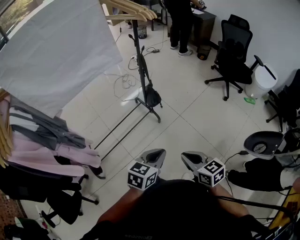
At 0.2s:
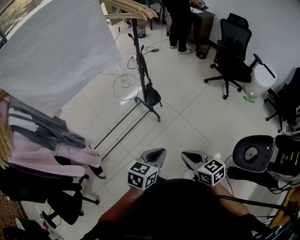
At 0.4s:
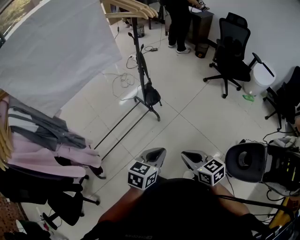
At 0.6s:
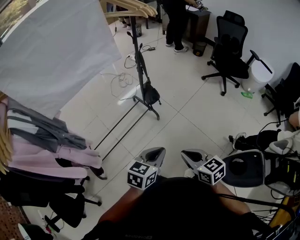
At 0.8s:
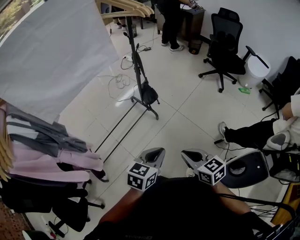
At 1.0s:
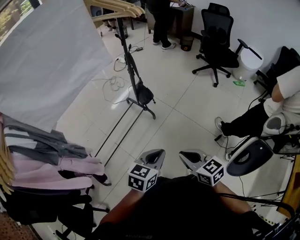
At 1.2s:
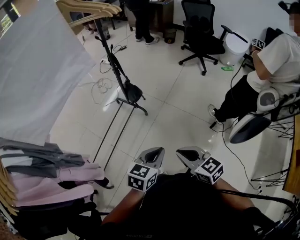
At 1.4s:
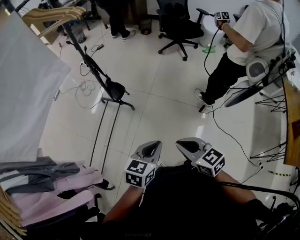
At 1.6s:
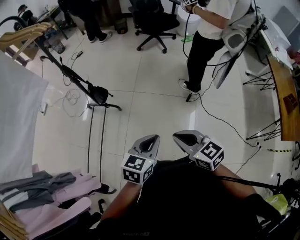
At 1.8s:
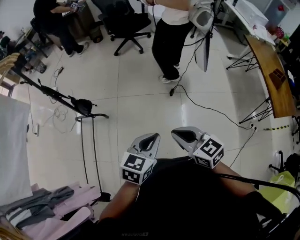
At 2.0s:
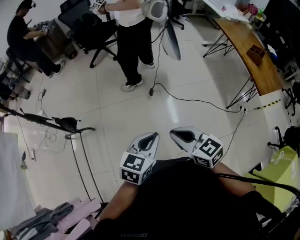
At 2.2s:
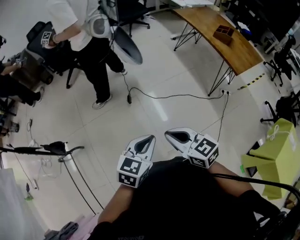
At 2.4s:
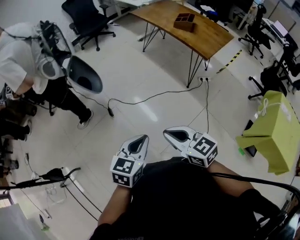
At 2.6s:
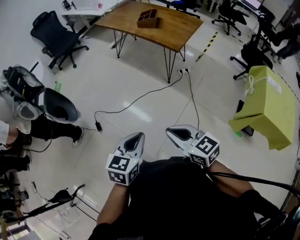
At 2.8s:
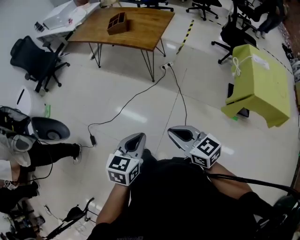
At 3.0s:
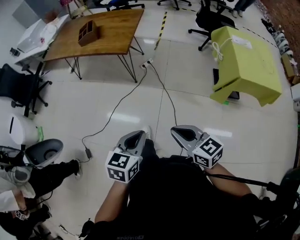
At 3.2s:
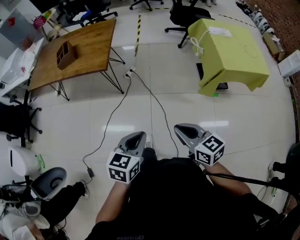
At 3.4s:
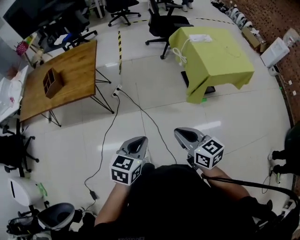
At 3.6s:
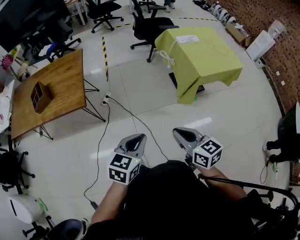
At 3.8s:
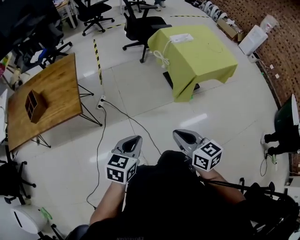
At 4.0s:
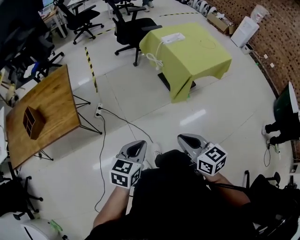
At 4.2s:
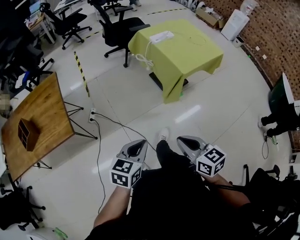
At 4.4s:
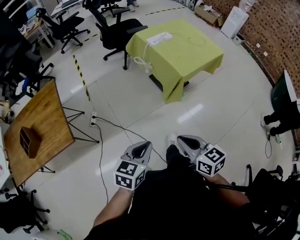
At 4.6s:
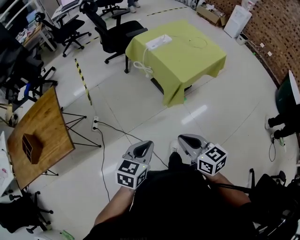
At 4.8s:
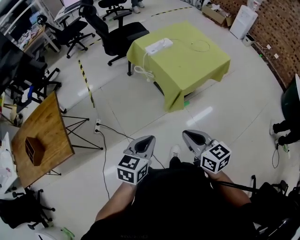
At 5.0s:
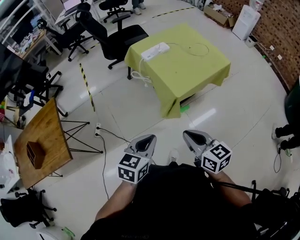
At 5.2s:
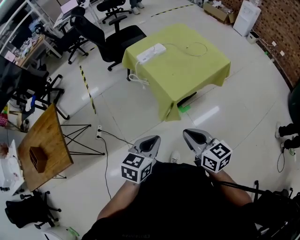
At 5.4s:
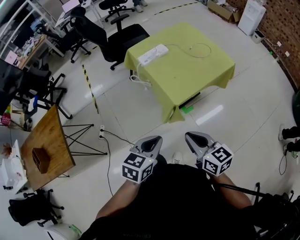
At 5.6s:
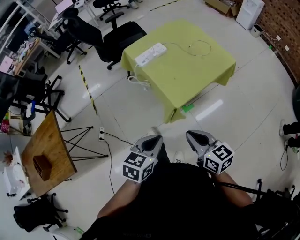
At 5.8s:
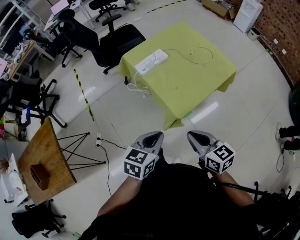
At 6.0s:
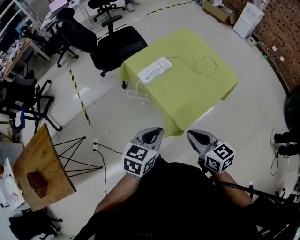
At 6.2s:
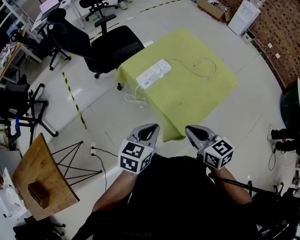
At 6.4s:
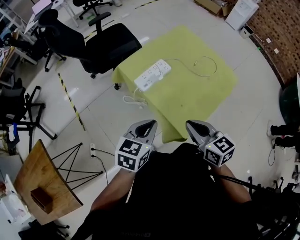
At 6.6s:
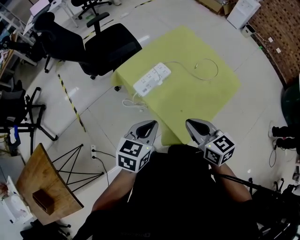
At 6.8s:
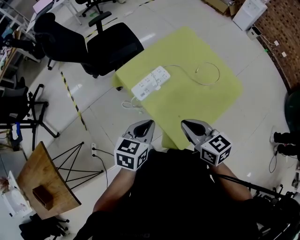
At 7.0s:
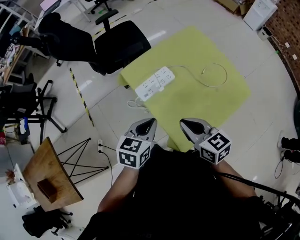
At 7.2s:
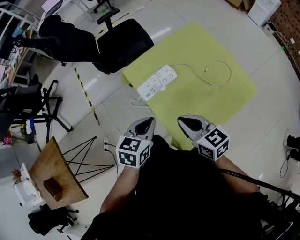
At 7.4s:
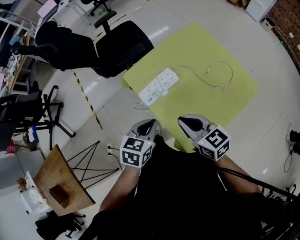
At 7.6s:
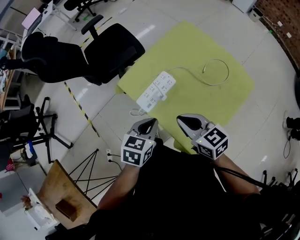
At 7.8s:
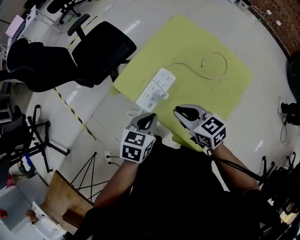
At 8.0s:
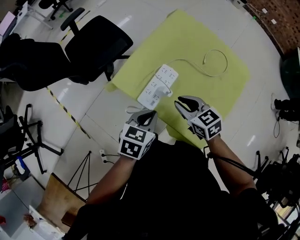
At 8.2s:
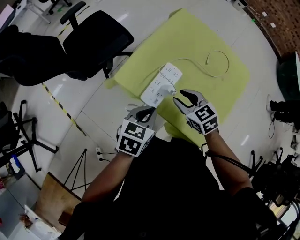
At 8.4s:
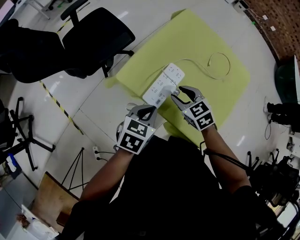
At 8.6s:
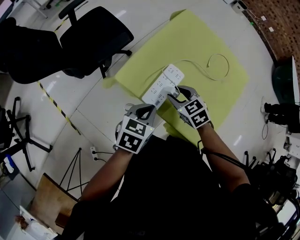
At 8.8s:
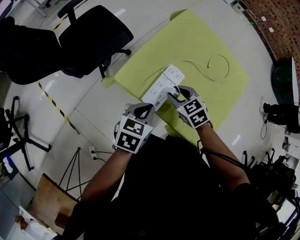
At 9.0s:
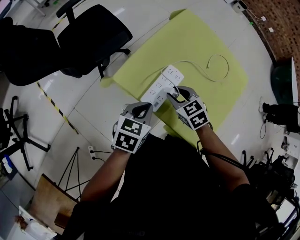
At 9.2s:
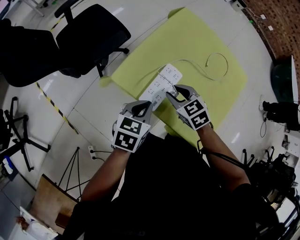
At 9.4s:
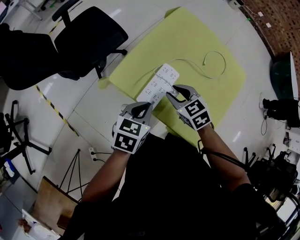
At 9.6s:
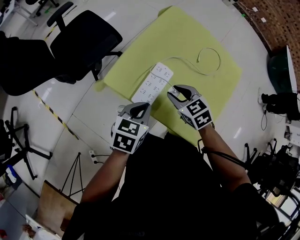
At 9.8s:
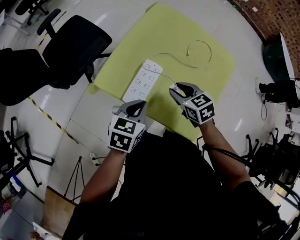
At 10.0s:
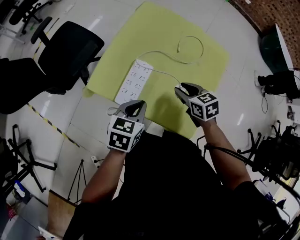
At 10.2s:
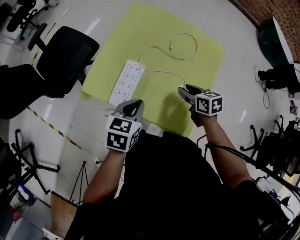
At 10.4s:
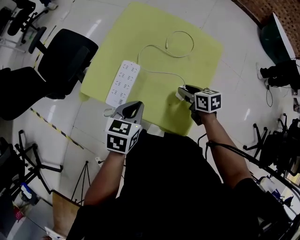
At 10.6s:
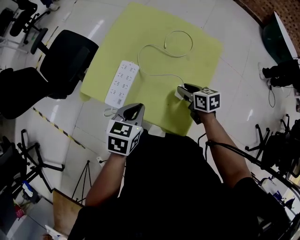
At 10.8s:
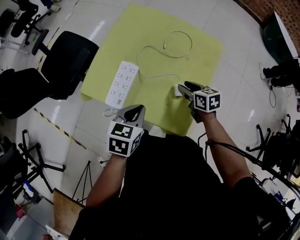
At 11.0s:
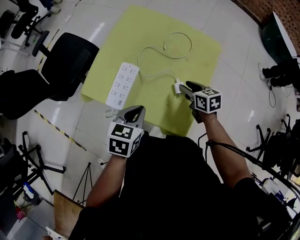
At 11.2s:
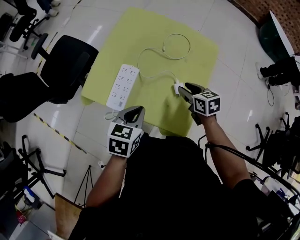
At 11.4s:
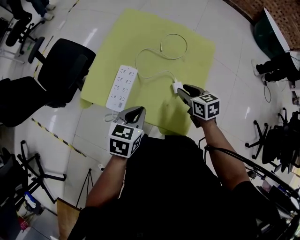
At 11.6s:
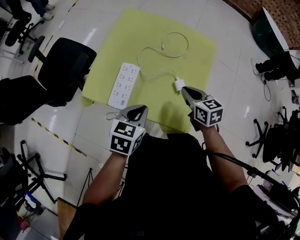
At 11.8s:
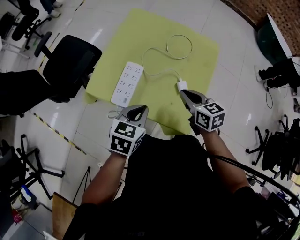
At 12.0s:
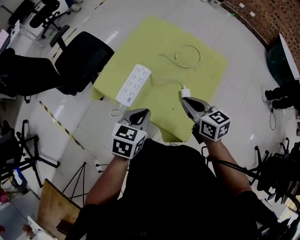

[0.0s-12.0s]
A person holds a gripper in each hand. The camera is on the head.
0.0s to 1.6s: The right gripper changes place by approximately 10 cm, and turns by roughly 30 degrees. Meanwhile the left gripper ends up about 10 cm from where it was, and swivels approximately 30 degrees.
1.6s to 3.0s: The pair of grippers is taken some 80 cm. The left gripper rotates some 80 degrees; the right gripper swivels approximately 90 degrees.
3.0s to 4.4s: The right gripper shifts by roughly 25 cm, and turns by some 50 degrees. Meanwhile the left gripper shifts by approximately 30 cm, and changes its angle by about 50 degrees.
4.4s to 6.0s: Both grippers are carried forward, some 40 cm.
6.0s to 7.6s: The two grippers go roughly 25 cm forward.
7.6s to 9.0s: The right gripper heads downward, forward and to the left, covering approximately 15 cm, turns by some 30 degrees, and opens its fingers. The left gripper shifts about 10 cm to the left and forward.
9.0s to 10.4s: The left gripper moves to the right, about 10 cm; the right gripper is displaced to the right by some 25 cm, and rotates around the line of its fingers by roughly 40 degrees, clockwise from behind.
10.4s to 12.0s: The left gripper ends up some 5 cm from where it was; the right gripper goes roughly 15 cm upward, rotates approximately 20 degrees, and closes.

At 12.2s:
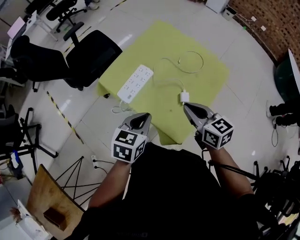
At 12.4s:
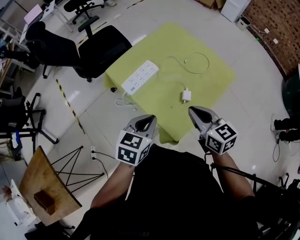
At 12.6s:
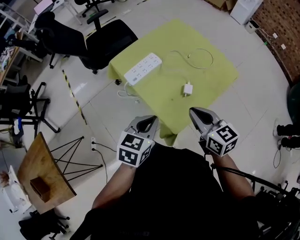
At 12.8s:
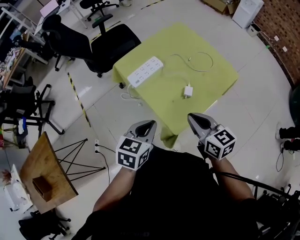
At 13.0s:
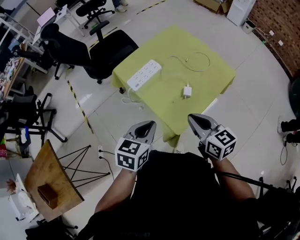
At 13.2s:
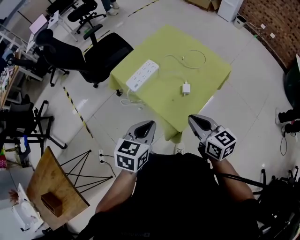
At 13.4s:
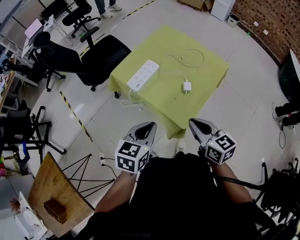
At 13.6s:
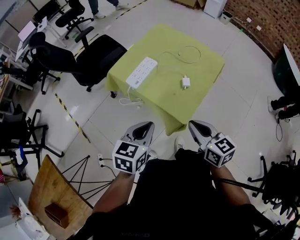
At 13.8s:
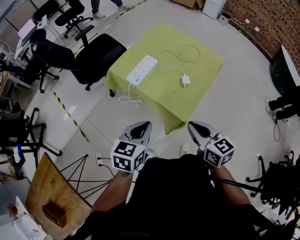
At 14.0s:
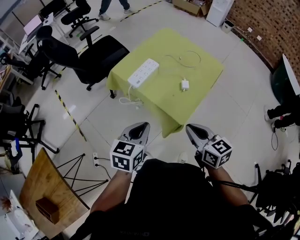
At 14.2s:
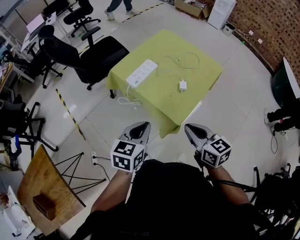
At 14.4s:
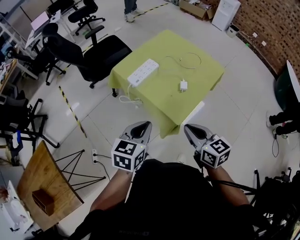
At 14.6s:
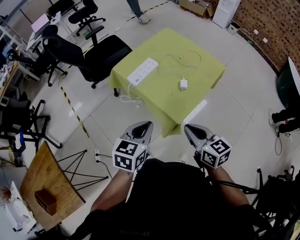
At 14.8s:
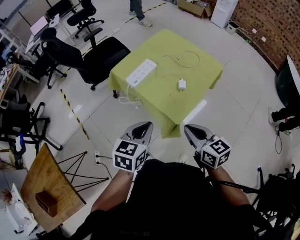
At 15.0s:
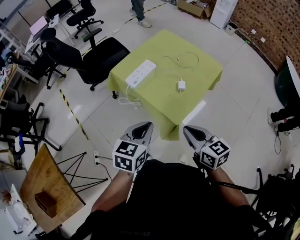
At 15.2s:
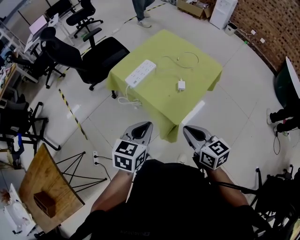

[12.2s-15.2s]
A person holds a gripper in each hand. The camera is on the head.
12.2s to 13.8s: Both grippers travel together backward, roughly 15 cm.
13.8s to 15.2s: The left gripper changes place by some 5 cm.

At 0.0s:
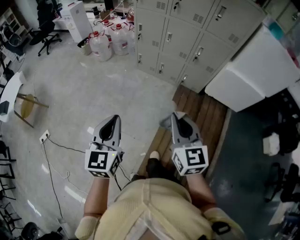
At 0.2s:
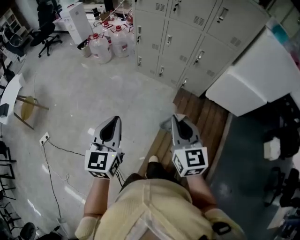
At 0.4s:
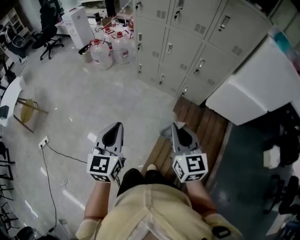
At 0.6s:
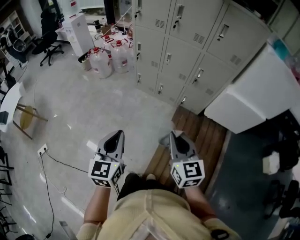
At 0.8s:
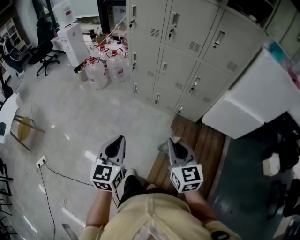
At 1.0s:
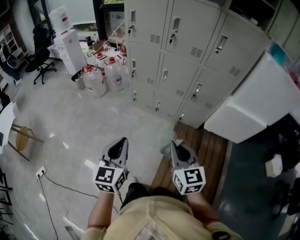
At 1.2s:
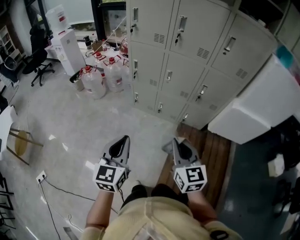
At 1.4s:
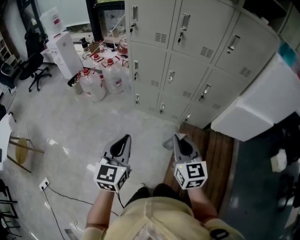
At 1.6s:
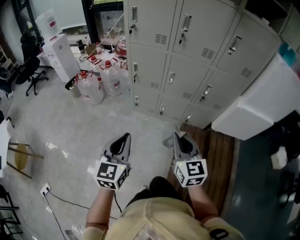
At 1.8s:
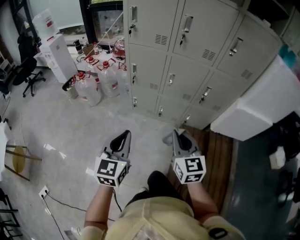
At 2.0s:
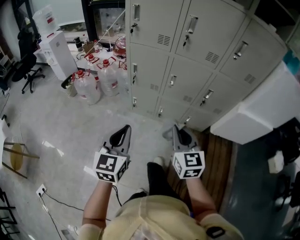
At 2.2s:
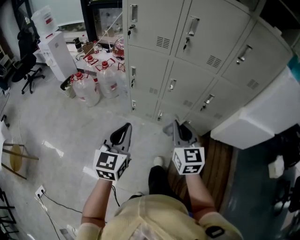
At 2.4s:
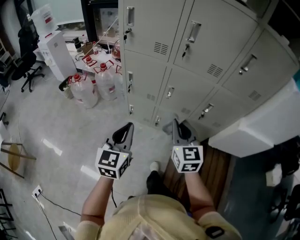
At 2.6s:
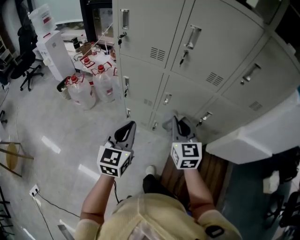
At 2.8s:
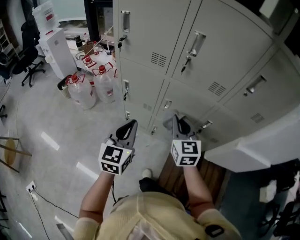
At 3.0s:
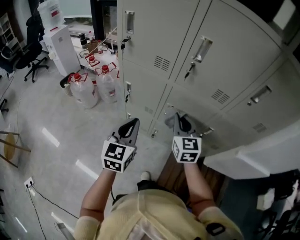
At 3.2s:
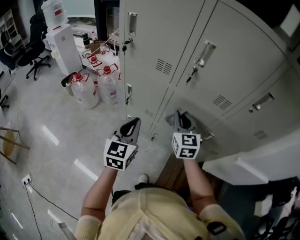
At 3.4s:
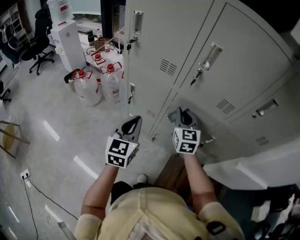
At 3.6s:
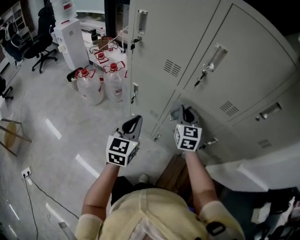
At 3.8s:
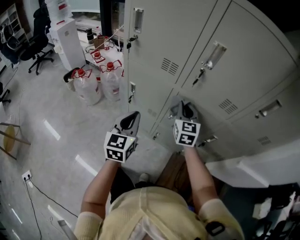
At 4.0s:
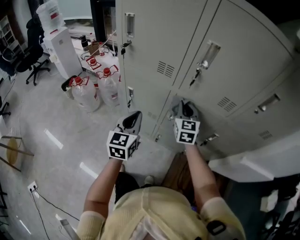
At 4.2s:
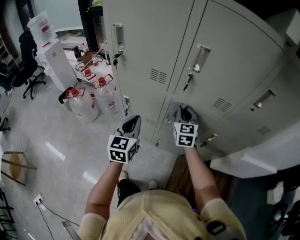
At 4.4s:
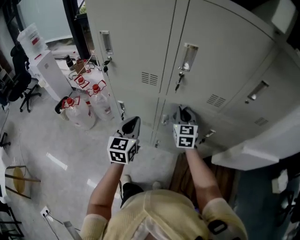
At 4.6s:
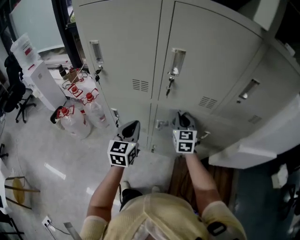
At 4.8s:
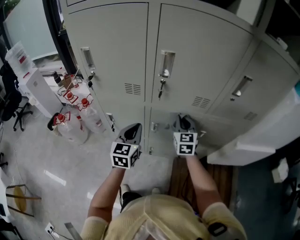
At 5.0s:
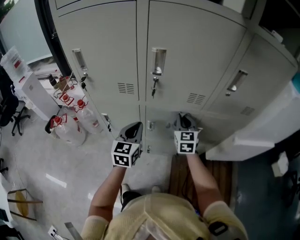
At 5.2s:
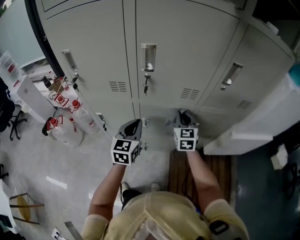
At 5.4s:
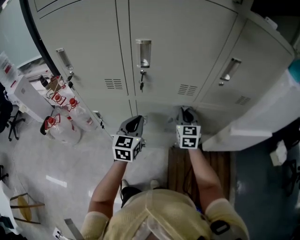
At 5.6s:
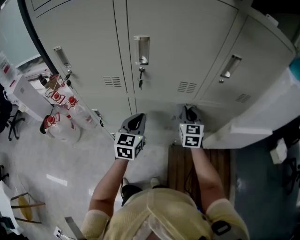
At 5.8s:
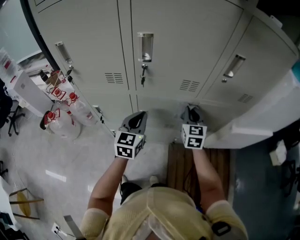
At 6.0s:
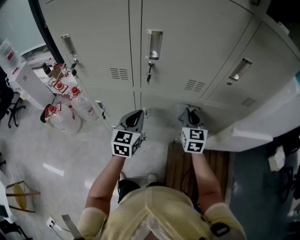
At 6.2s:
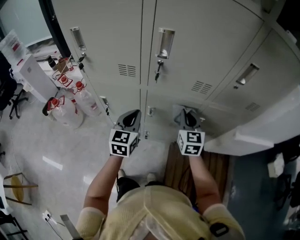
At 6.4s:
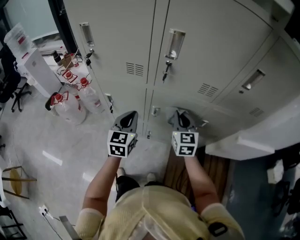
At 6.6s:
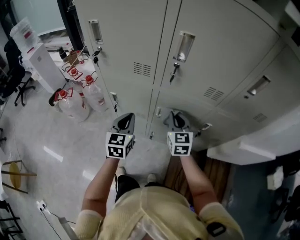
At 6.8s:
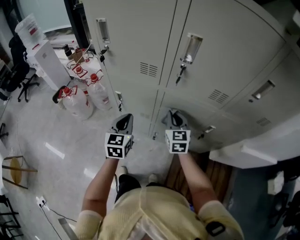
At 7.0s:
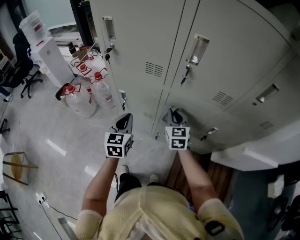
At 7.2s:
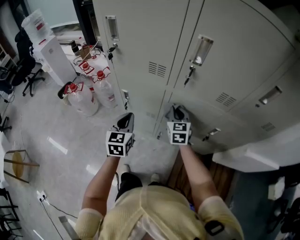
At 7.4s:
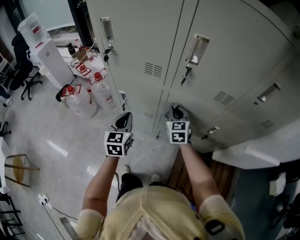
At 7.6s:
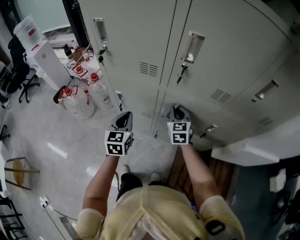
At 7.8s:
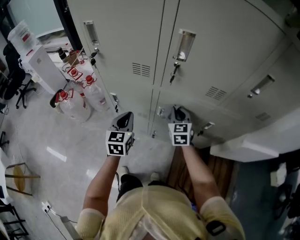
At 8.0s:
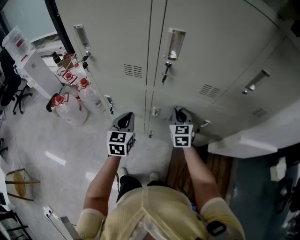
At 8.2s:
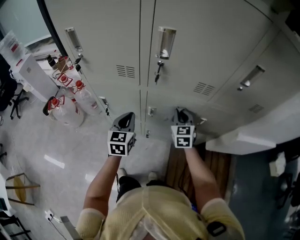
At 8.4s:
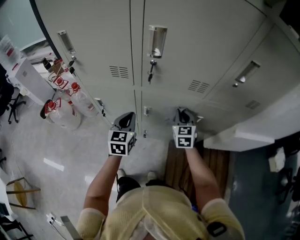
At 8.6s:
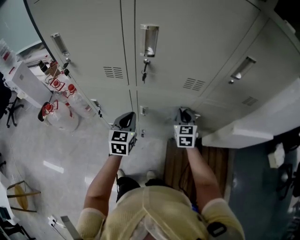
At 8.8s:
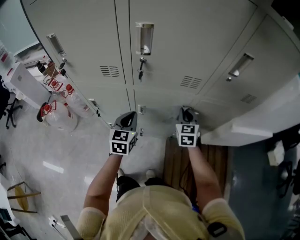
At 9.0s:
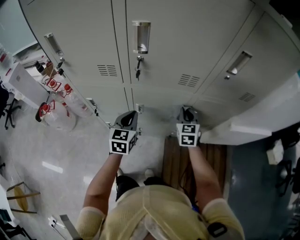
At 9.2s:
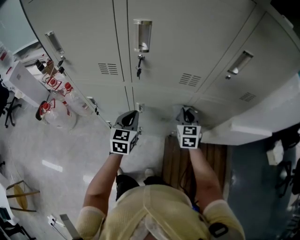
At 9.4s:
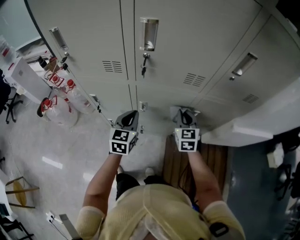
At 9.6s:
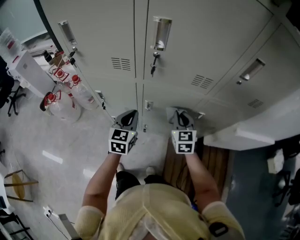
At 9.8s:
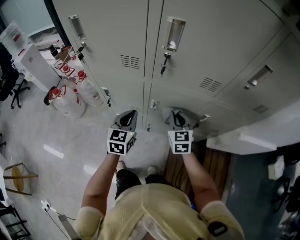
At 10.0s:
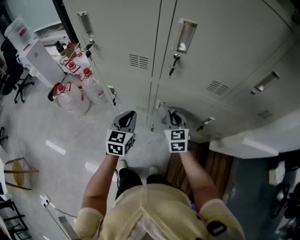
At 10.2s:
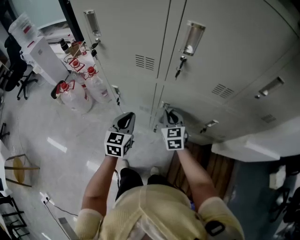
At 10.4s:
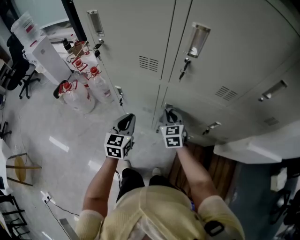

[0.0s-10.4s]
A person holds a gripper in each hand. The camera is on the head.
0.0s to 1.4s: Both grippers travel together forward, some 25 cm.
1.4s to 3.0s: Both grippers move forward, about 40 cm.
3.0s to 4.4s: The two grippers go some 10 cm forward.
4.4s to 6.0s: The right gripper goes roughly 15 cm to the right; the left gripper moves to the right and forward, approximately 10 cm.
6.0s to 7.4s: The two grippers go approximately 15 cm to the left. The left gripper changes its angle by approximately 20 degrees.
7.4s to 9.0s: The two grippers go approximately 20 cm to the right.
9.0s to 10.4s: The right gripper is displaced to the left by about 25 cm, and swivels roughly 20 degrees. The left gripper goes approximately 15 cm to the left.
